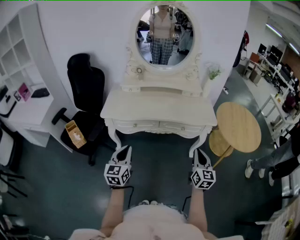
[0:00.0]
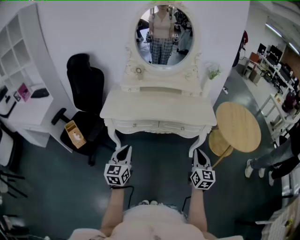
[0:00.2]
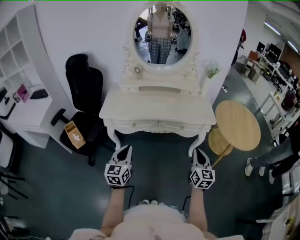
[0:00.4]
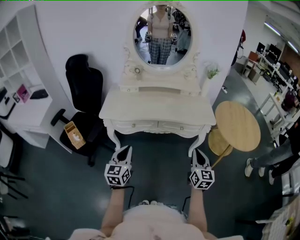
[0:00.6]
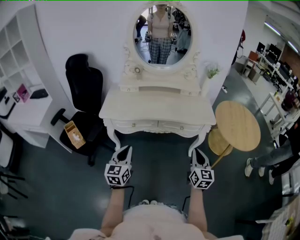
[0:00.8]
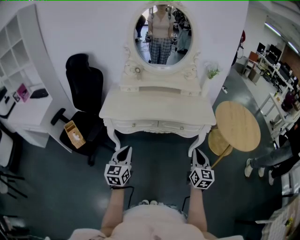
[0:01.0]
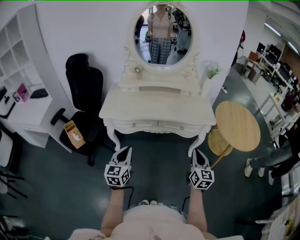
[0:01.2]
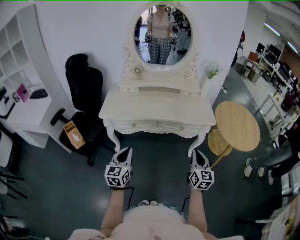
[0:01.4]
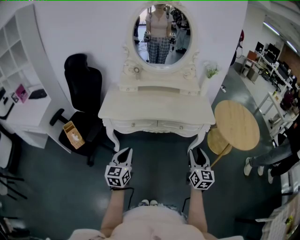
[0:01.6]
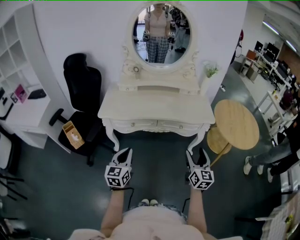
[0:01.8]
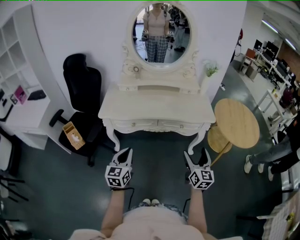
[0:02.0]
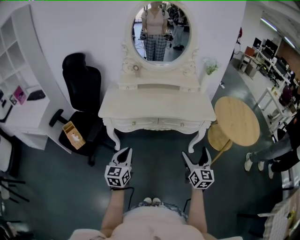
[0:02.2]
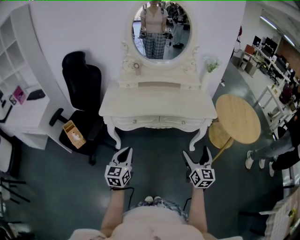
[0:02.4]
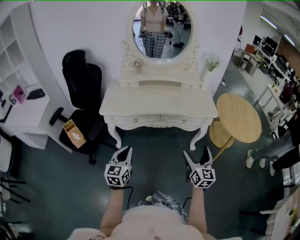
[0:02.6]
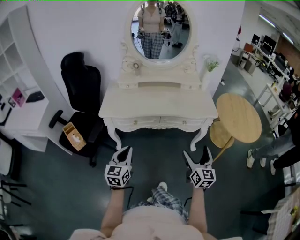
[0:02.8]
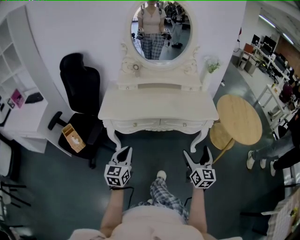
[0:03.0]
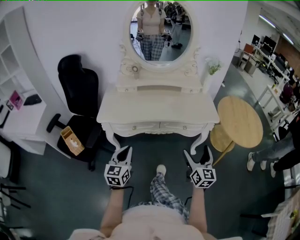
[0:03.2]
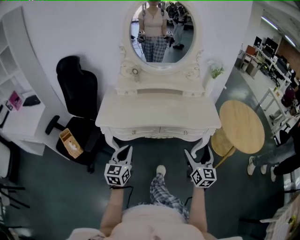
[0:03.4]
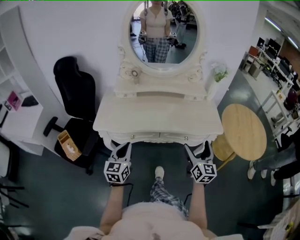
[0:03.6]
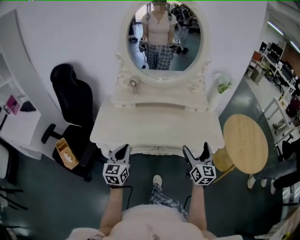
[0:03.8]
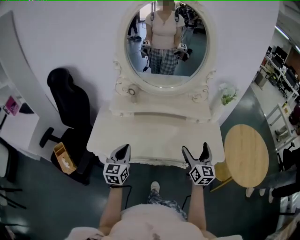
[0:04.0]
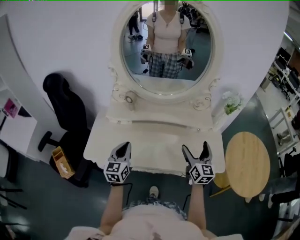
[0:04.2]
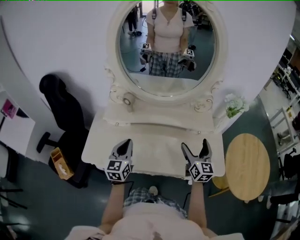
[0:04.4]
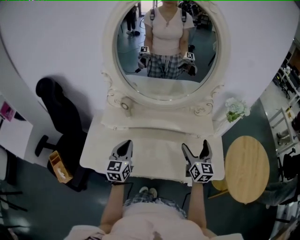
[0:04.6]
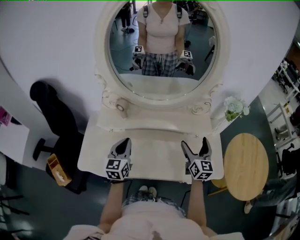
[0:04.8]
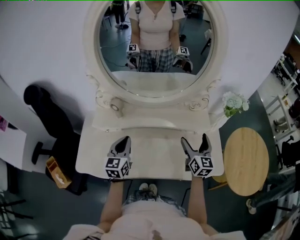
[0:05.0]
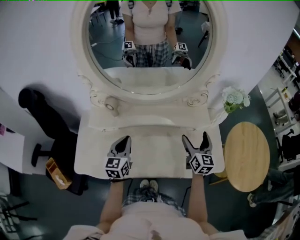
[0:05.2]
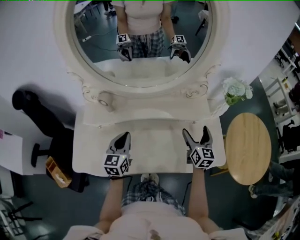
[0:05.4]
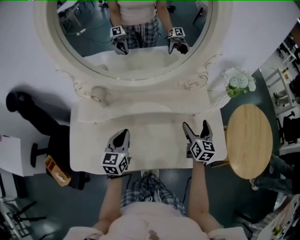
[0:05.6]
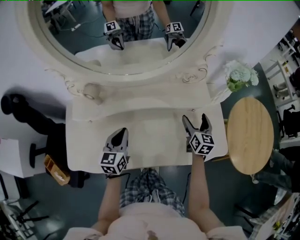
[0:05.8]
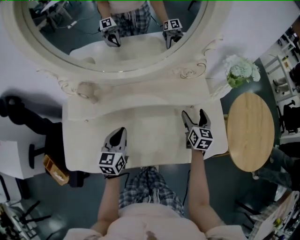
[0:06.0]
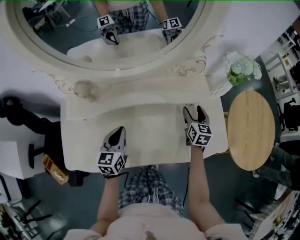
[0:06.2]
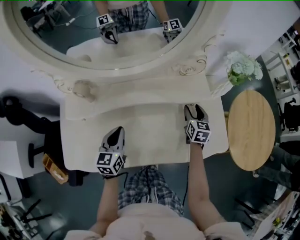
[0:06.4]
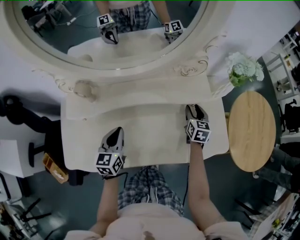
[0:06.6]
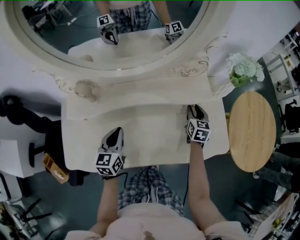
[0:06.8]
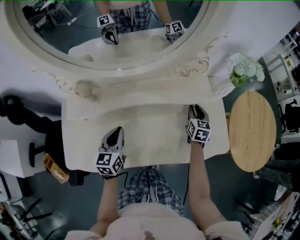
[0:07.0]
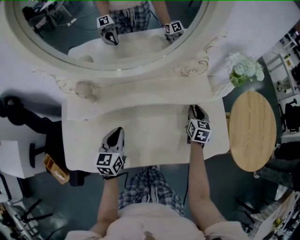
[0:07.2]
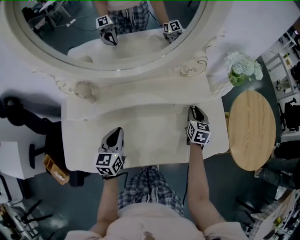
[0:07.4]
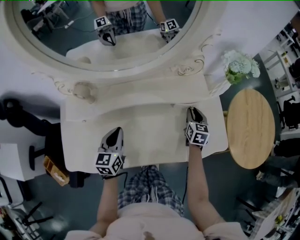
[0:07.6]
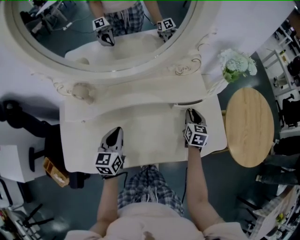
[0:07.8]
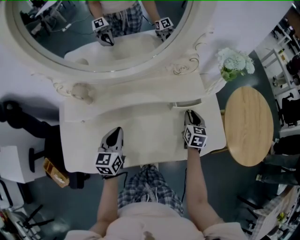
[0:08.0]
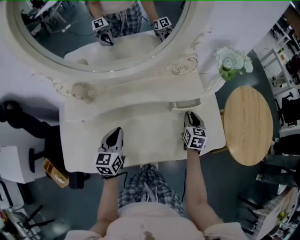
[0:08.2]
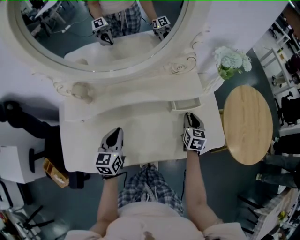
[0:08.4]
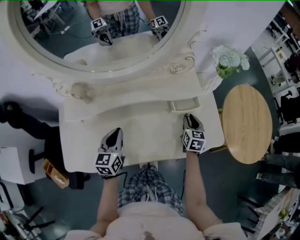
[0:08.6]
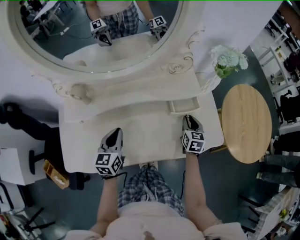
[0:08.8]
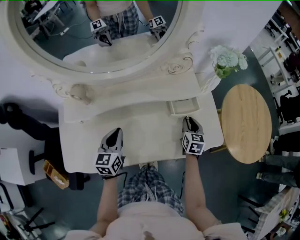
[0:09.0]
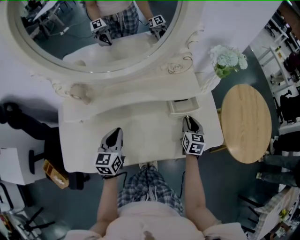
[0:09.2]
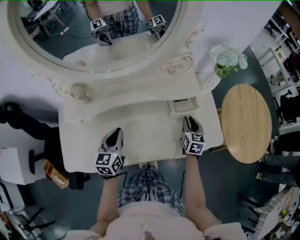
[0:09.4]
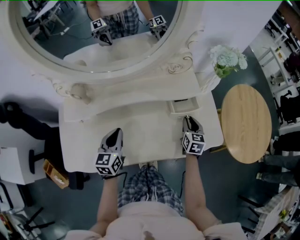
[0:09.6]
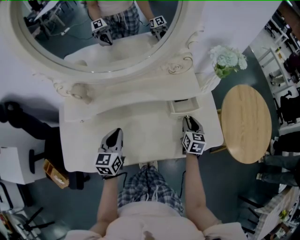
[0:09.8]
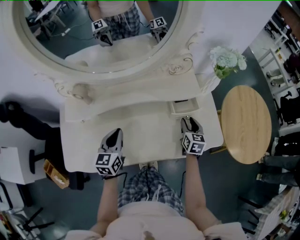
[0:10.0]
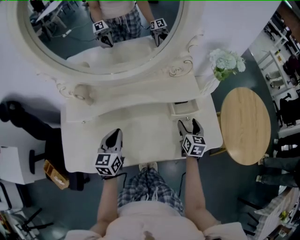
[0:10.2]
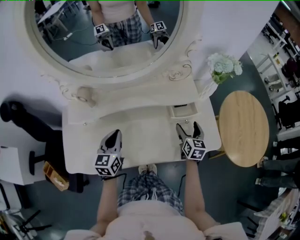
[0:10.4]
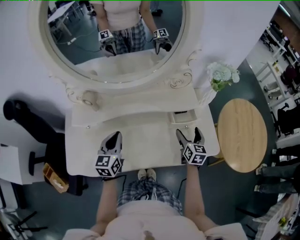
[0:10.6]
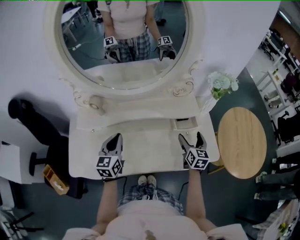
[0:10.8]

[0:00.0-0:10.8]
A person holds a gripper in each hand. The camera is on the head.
0.0 to 1.6 s: The grippers stay close to where they were, moving slightly.
1.6 to 3.0 s: The right gripper opens its fingers.
3.0 to 4.6 s: The pair of grippers is taken forward, approximately 50 cm.
4.6 to 6.2 s: The grippers both shift downward, forward and to the right by approximately 20 cm. The right gripper turns by roughly 30 degrees, and closes up.
6.2 to 7.8 s: The right gripper closes up.
7.8 to 9.2 s: The right gripper heads backward, covering approximately 5 cm.
9.2 to 10.8 s: Both grippers travel together upward, some 10 cm. The right gripper opens.

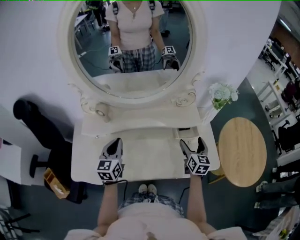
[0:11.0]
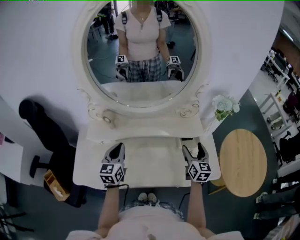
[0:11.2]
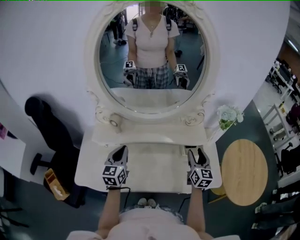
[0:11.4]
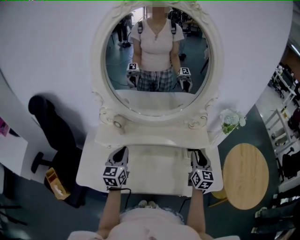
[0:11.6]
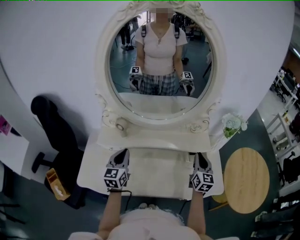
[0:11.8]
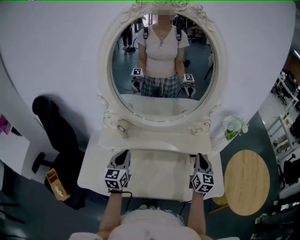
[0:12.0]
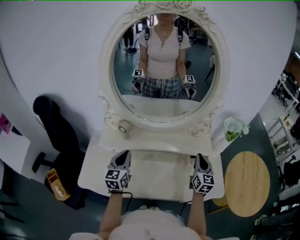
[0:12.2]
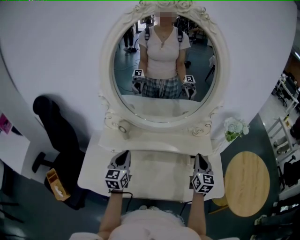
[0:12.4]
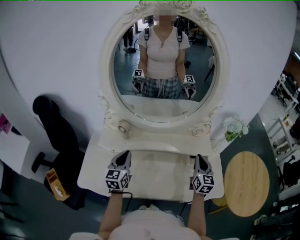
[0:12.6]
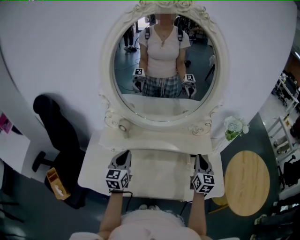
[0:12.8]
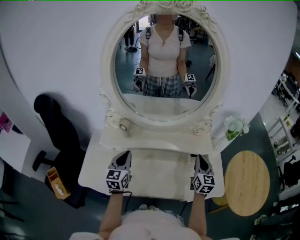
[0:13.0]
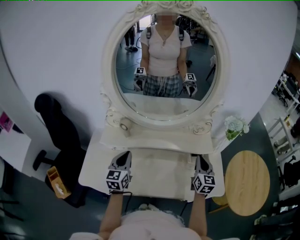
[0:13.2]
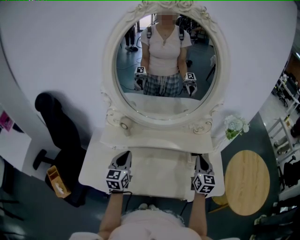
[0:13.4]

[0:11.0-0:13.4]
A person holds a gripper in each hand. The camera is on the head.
11.0 to 12.2 s: The right gripper travels upward by roughly 5 cm, and closes. Meanwhile the left gripper moves some 5 cm.
12.2 to 13.4 s: The grippers move only a little.

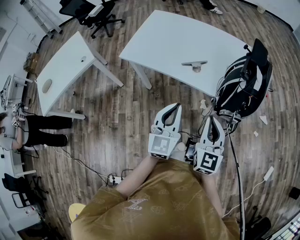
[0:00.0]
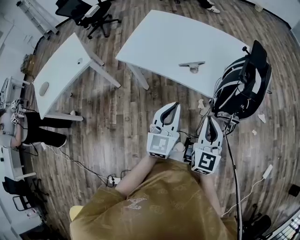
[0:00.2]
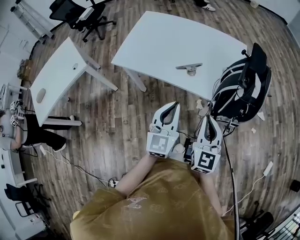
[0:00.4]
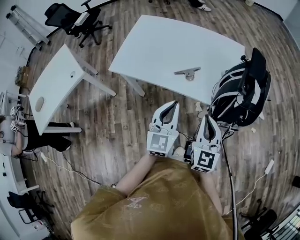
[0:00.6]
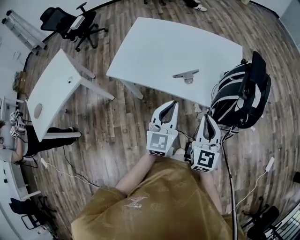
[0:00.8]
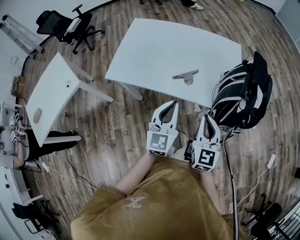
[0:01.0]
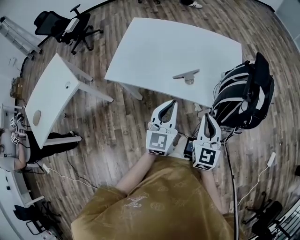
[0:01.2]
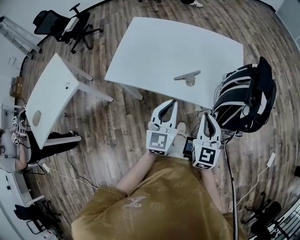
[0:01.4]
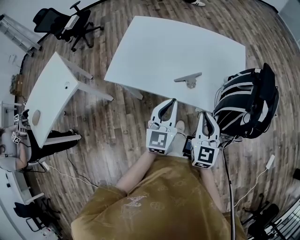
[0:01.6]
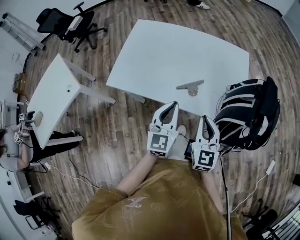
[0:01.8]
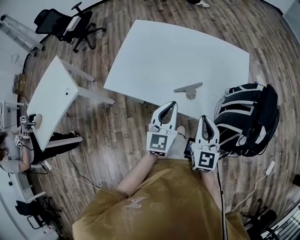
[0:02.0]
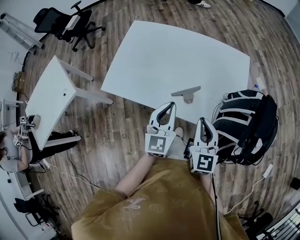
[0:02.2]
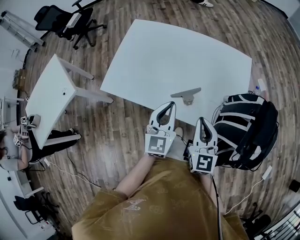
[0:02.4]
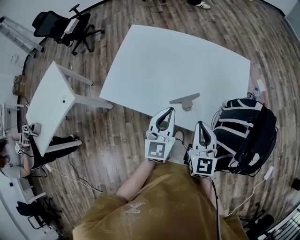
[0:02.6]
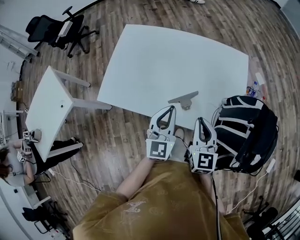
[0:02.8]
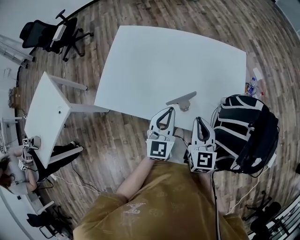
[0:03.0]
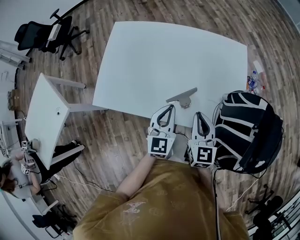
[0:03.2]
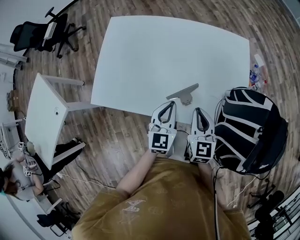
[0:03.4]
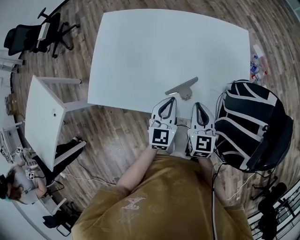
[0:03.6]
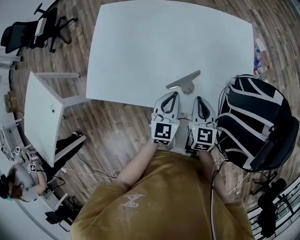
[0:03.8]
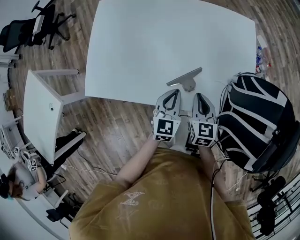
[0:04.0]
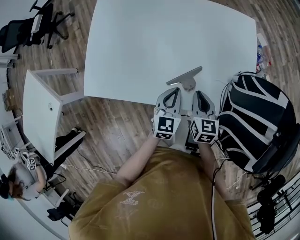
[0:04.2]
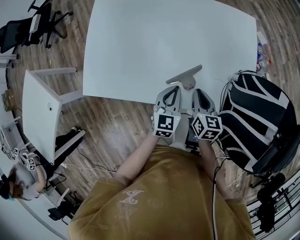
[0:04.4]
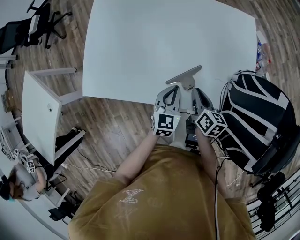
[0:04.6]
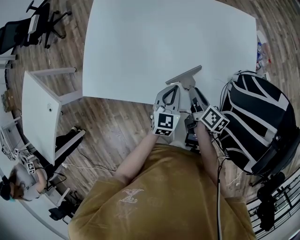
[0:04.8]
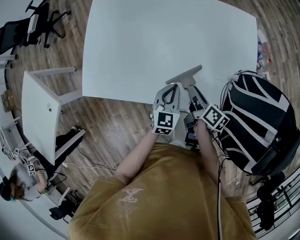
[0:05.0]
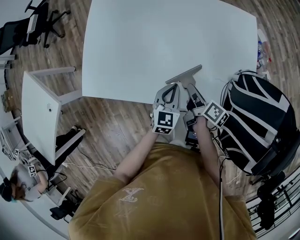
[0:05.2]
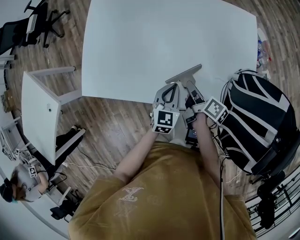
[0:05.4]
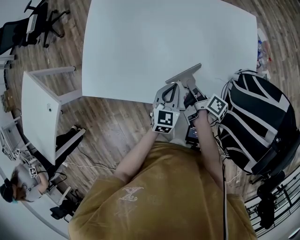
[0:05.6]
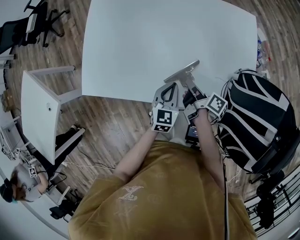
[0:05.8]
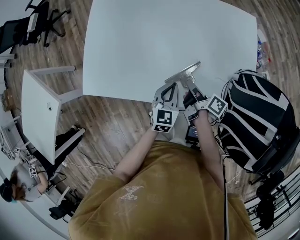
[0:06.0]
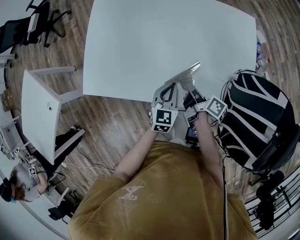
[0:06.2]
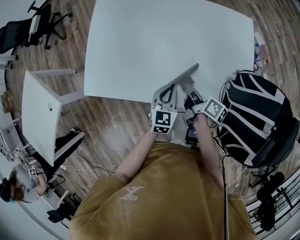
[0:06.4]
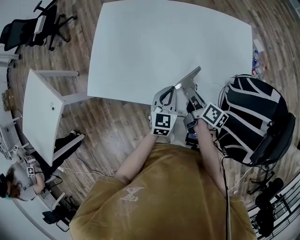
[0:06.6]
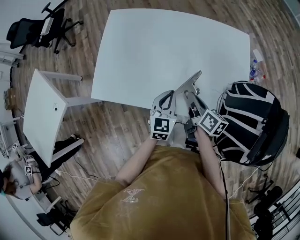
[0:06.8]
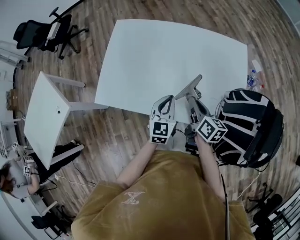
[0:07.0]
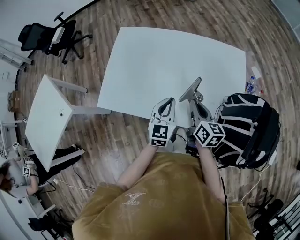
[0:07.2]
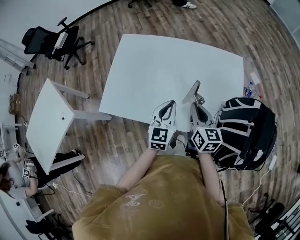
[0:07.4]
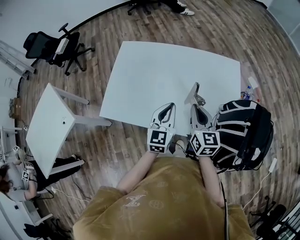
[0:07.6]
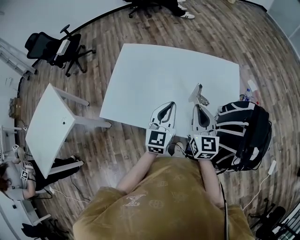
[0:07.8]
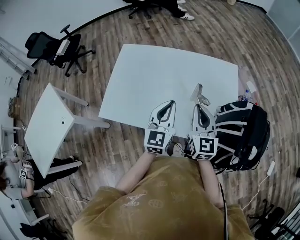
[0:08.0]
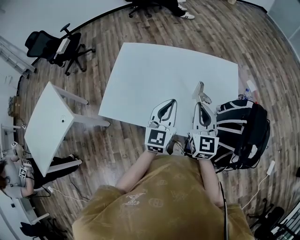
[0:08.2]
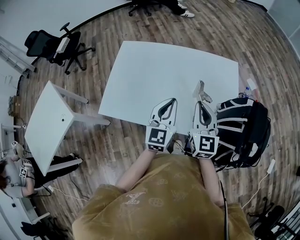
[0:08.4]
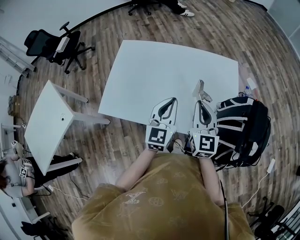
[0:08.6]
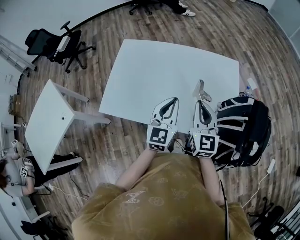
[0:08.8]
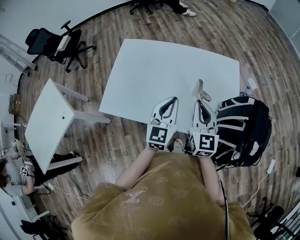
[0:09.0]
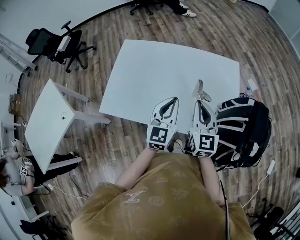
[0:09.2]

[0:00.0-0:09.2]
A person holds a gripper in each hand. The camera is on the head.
0.0 to 1.6 s: The left gripper is displaced forward by roughly 15 cm, while the right gripper shifts some 15 cm forward and to the left.
1.6 to 3.0 s: The grippers both shift forward by some 15 cm.
3.0 to 4.6 s: Both grippers move downward, roughly 15 cm. The right gripper rotates around the line of its fingers by approximately 40 degrees, clockwise from behind. Meanwhile the left gripper rotates roughly 20 degrees.
4.6 to 6.2 s: The right gripper swivels about 40 degrees.
6.2 to 7.6 s: The grippers both shift upward by some 20 cm. The right gripper rolls counterclockwise, seen from behind, by roughly 70 degrees.
7.6 to 9.2 s: There are only small adjustments of the grippers.

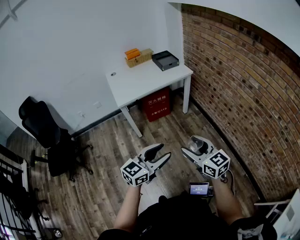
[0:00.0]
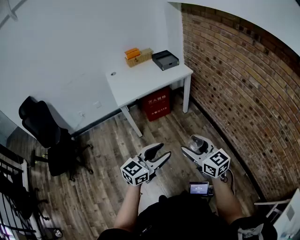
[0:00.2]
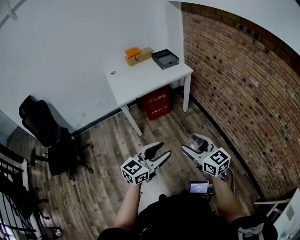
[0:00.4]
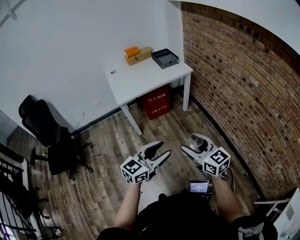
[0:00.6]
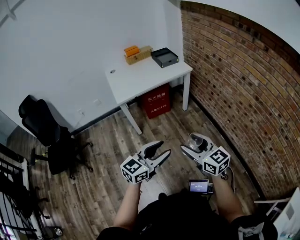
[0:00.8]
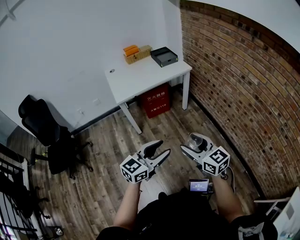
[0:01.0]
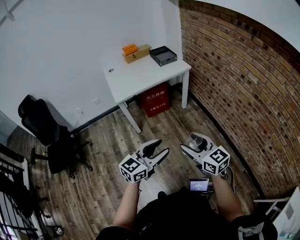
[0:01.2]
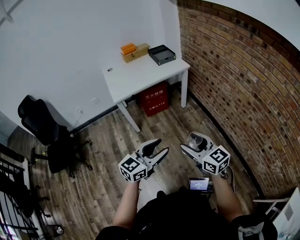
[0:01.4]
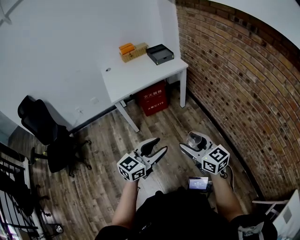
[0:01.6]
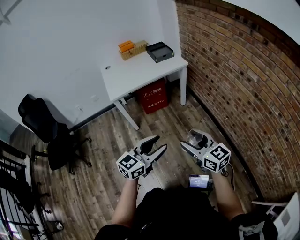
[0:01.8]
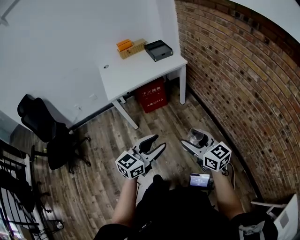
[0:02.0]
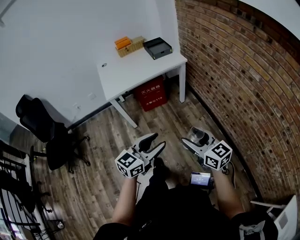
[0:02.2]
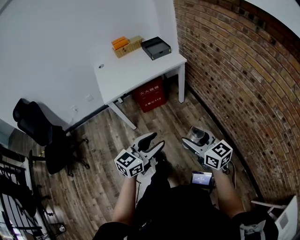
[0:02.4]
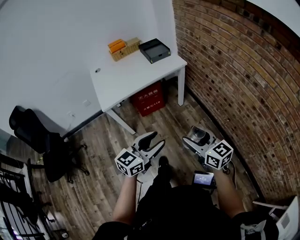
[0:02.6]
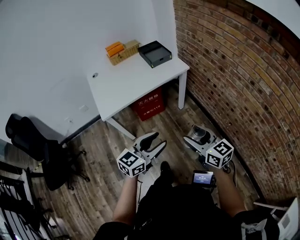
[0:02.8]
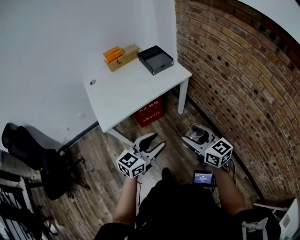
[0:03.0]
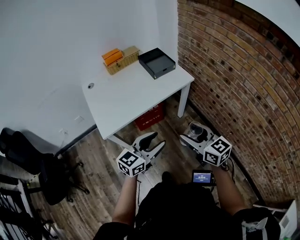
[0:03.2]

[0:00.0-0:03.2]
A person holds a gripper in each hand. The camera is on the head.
0.0 to 1.6 s: The right gripper changes place by approximately 5 cm.
1.6 to 3.2 s: Both grippers move forward, some 35 cm.
